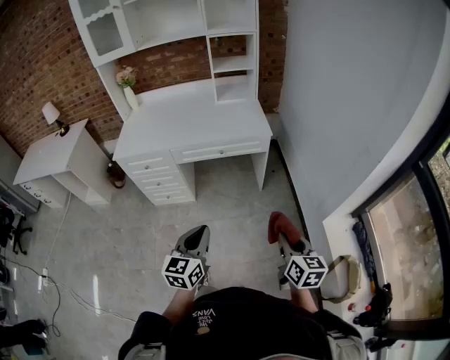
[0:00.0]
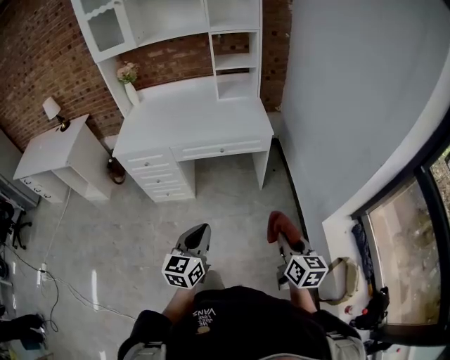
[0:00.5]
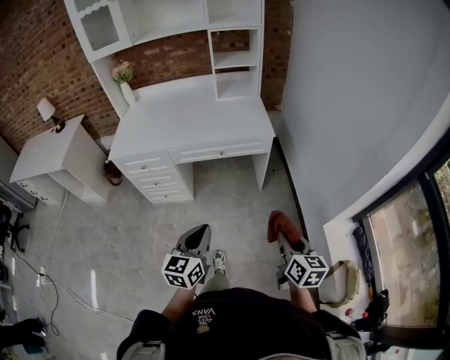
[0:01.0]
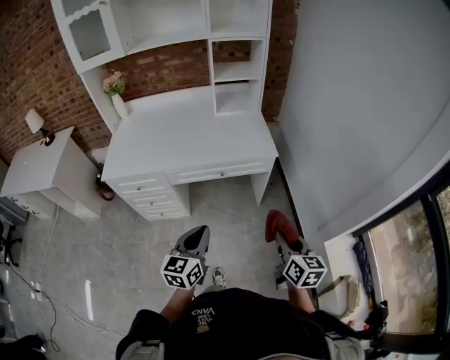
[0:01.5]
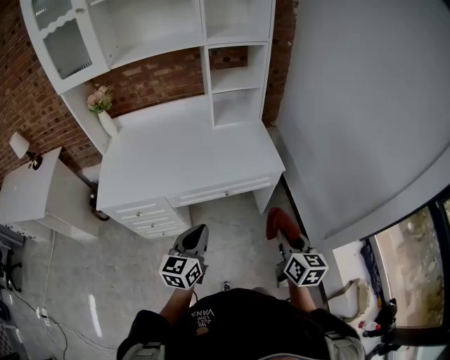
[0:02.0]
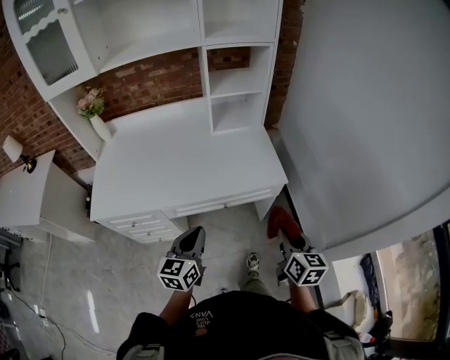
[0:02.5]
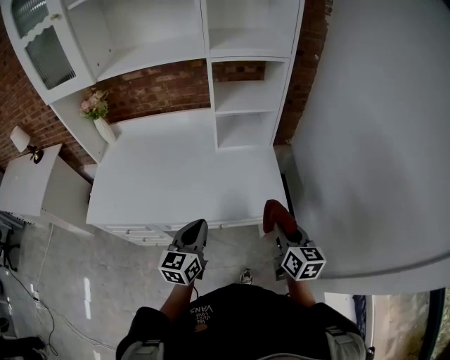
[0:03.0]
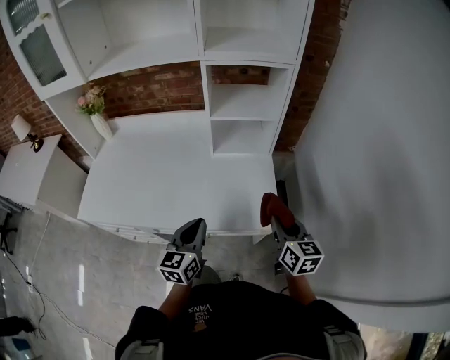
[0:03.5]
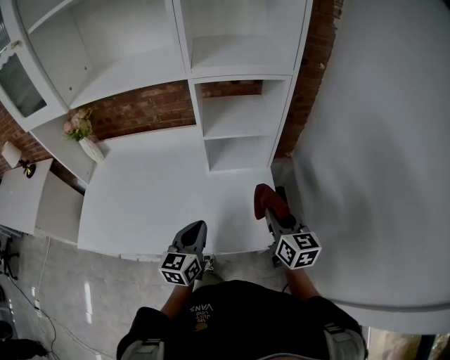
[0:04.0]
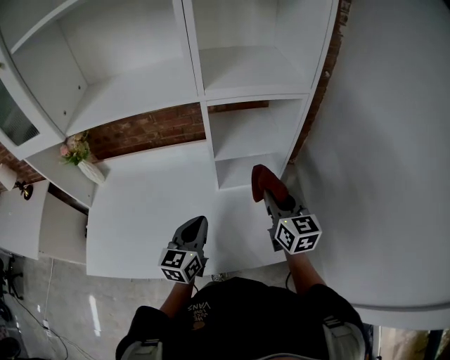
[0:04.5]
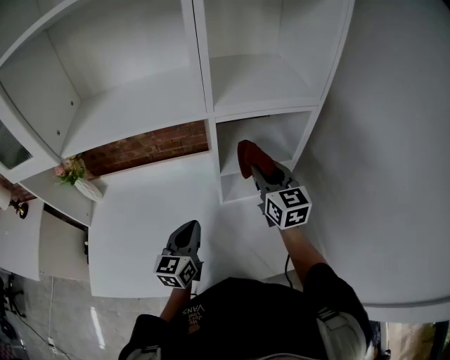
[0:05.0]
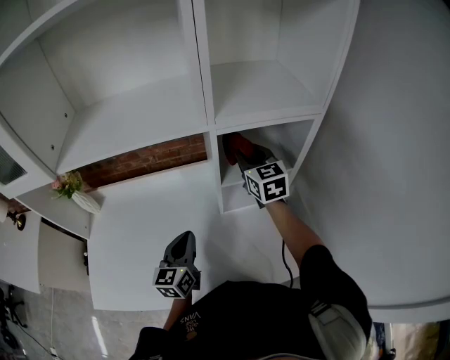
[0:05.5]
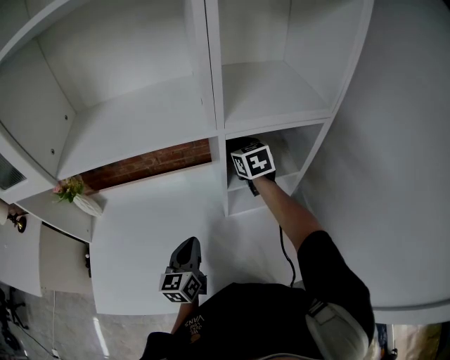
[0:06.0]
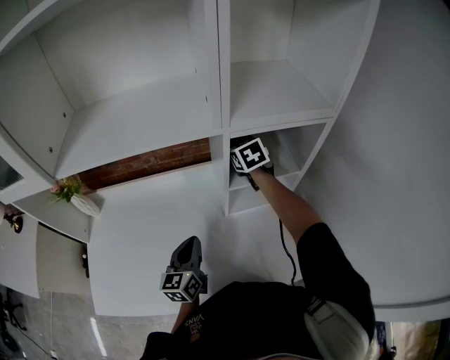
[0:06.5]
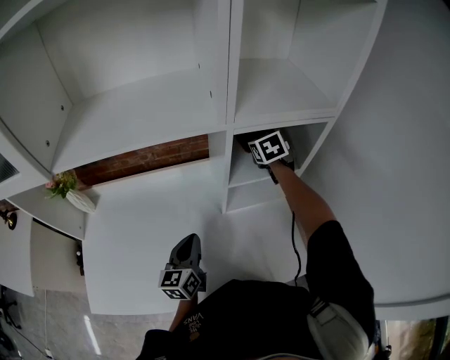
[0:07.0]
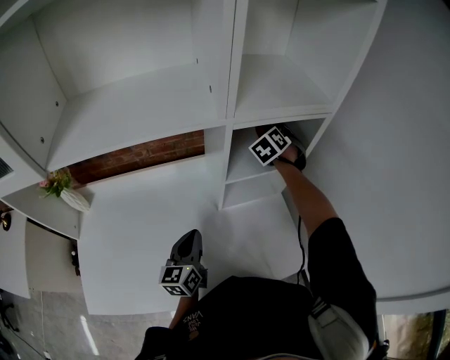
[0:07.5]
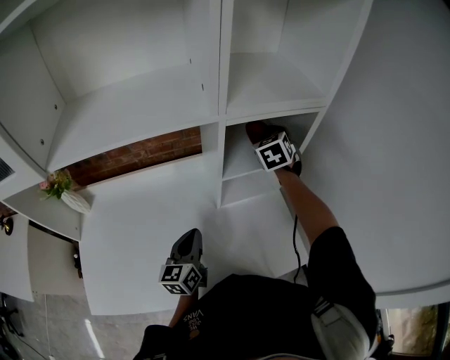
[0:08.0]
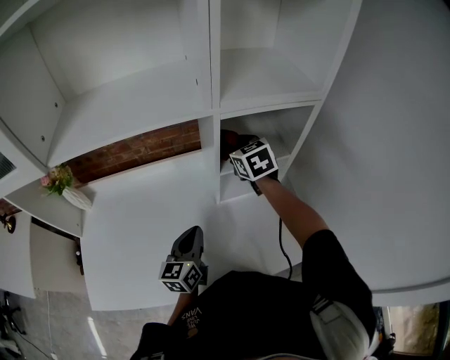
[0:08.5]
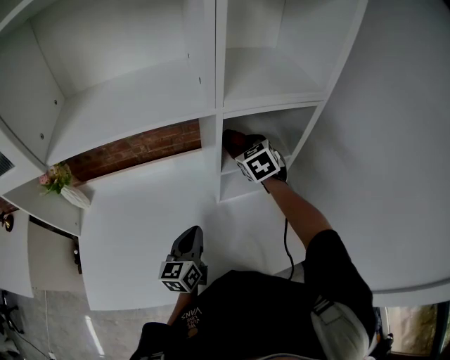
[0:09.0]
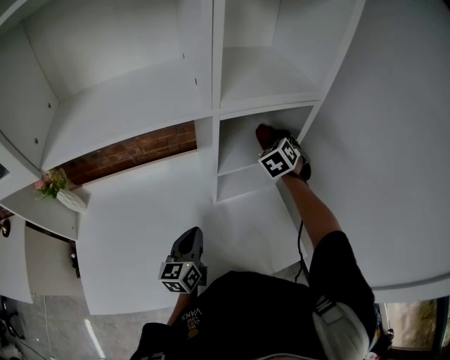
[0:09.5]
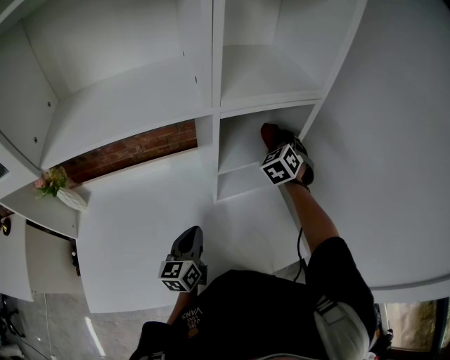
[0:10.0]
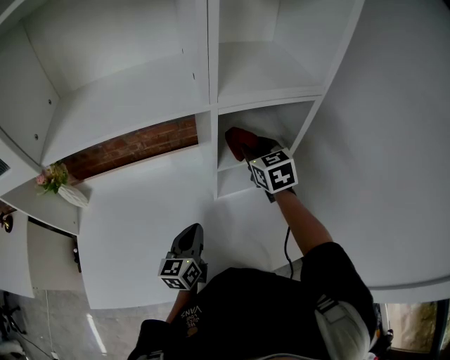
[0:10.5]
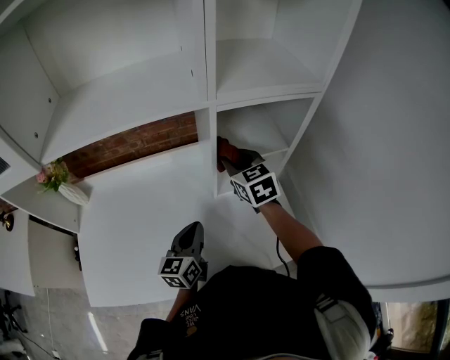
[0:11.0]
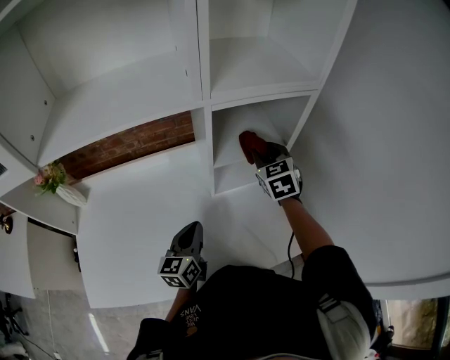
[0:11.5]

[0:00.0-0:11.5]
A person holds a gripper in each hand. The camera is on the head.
0:00.0 to 0:02.0: The left gripper heads forward, covering roughly 30 cm, while the right gripper goes approximately 30 cm forward and to the left.
0:02.0 to 0:04.0: The grippers both shift forward by about 40 cm.
0:04.0 to 0:06.0: The right gripper heads forward and to the left, covering approximately 40 cm, and swivels approximately 20 degrees. Meanwhile the left gripper travels forward and to the left by roughly 20 cm.
0:06.0 to 0:07.5: The right gripper heads to the right, covering approximately 15 cm, and turns by about 50 degrees.
0:07.5 to 0:09.5: The right gripper shifts roughly 5 cm backward, and goes to the left and returns, roughly 10 cm each way.
0:09.5 to 0:11.5: The right gripper is displaced backward by about 5 cm, moves some 15 cm to the left and comes back, and rotates some 20 degrees.

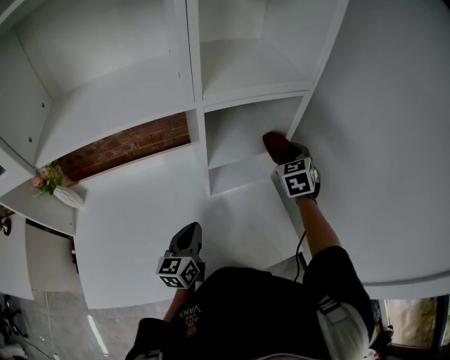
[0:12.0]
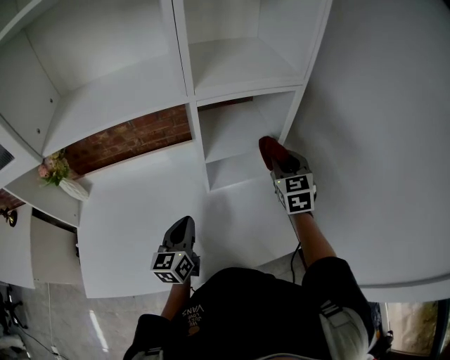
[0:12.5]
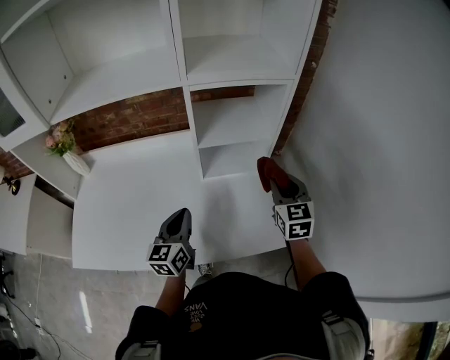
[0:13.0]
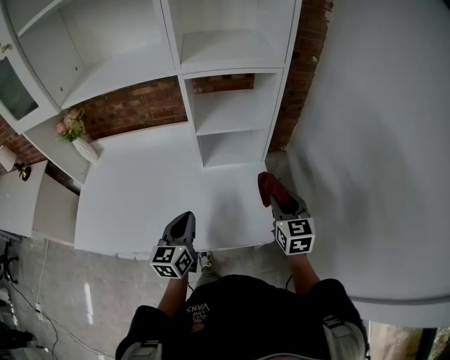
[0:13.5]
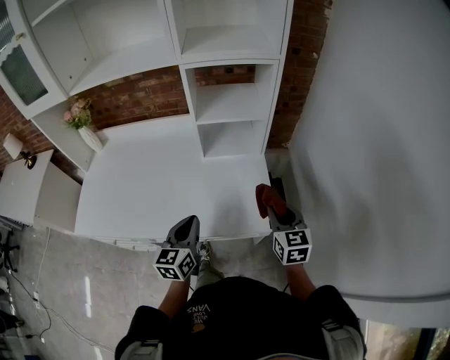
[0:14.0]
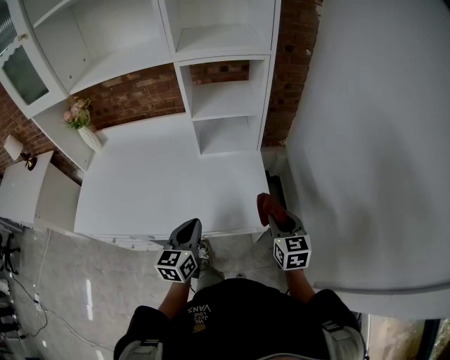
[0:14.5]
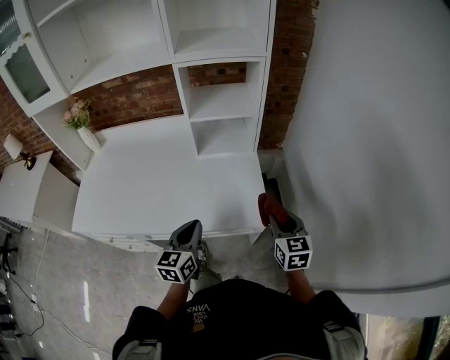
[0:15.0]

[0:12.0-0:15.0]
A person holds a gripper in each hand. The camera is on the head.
0:12.0 to 0:13.5: The right gripper moves backward, some 25 cm, and swivels about 30 degrees. Meanwhile the left gripper moves backward and to the right, approximately 15 cm.
0:13.5 to 0:15.0: The right gripper moves backward, about 15 cm. The left gripper is displaced backward and to the right by roughly 10 cm.

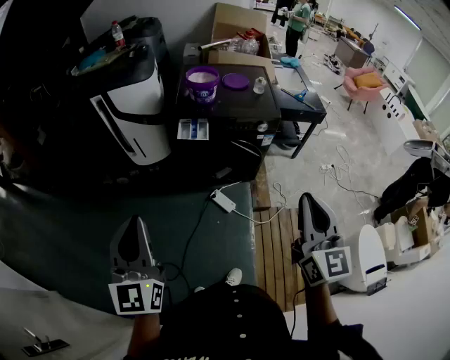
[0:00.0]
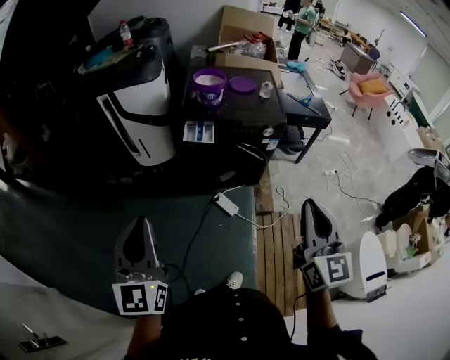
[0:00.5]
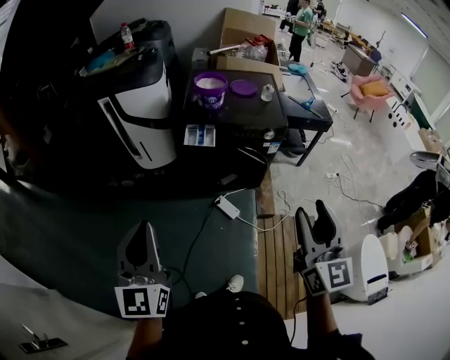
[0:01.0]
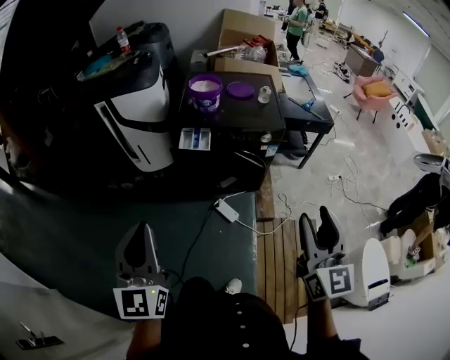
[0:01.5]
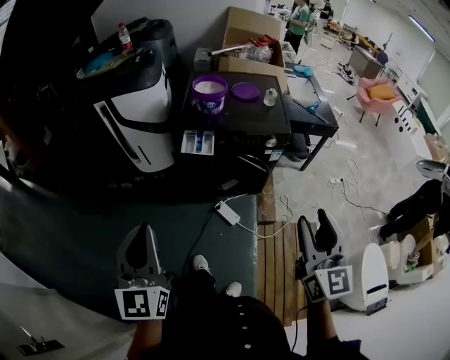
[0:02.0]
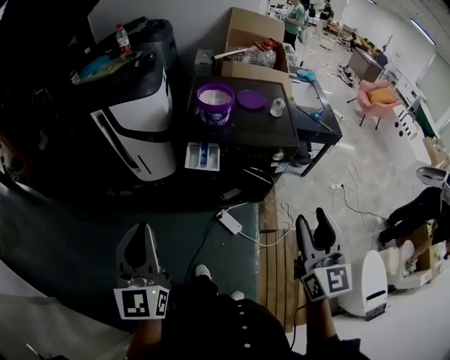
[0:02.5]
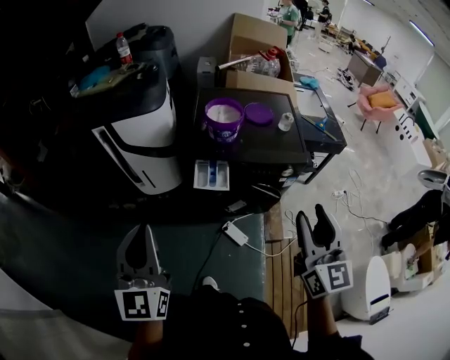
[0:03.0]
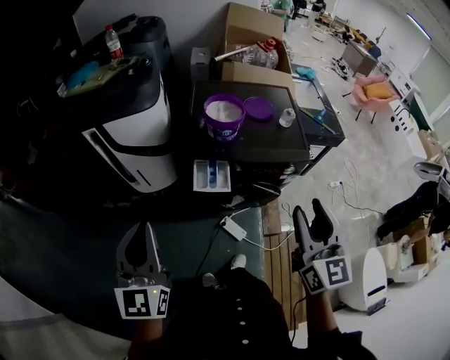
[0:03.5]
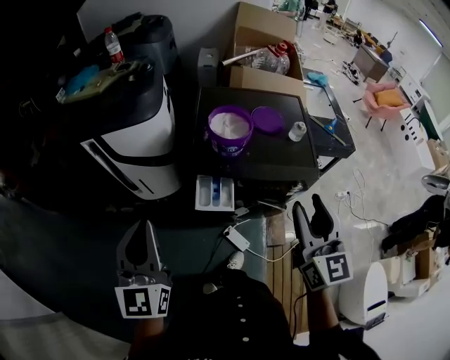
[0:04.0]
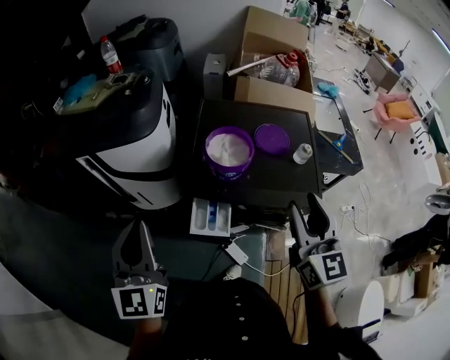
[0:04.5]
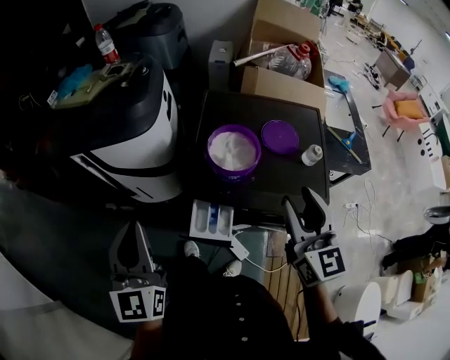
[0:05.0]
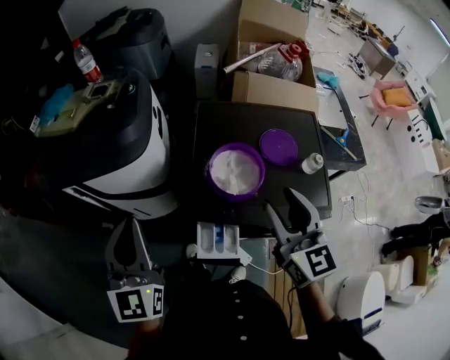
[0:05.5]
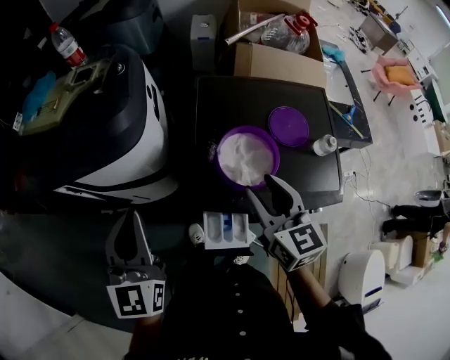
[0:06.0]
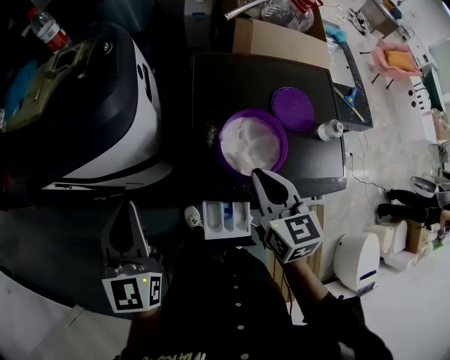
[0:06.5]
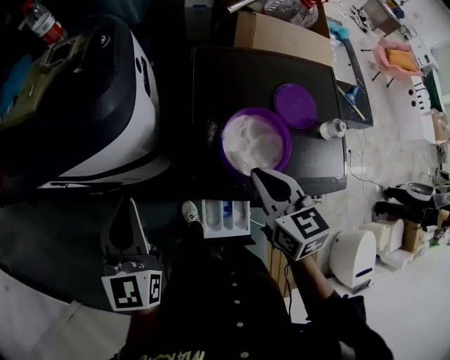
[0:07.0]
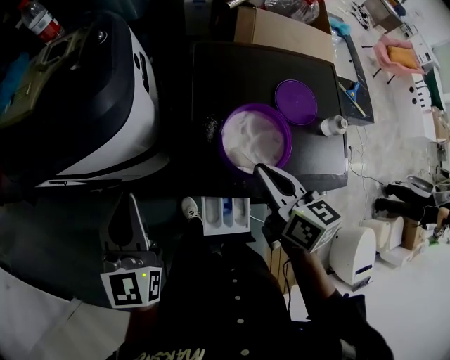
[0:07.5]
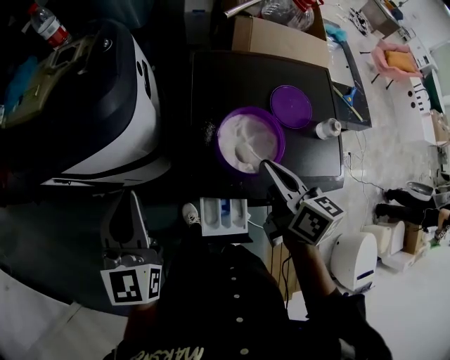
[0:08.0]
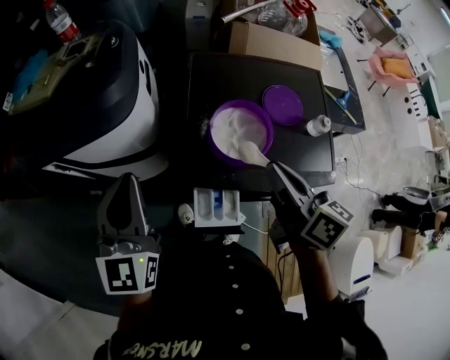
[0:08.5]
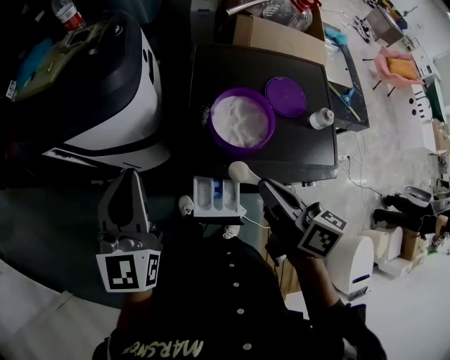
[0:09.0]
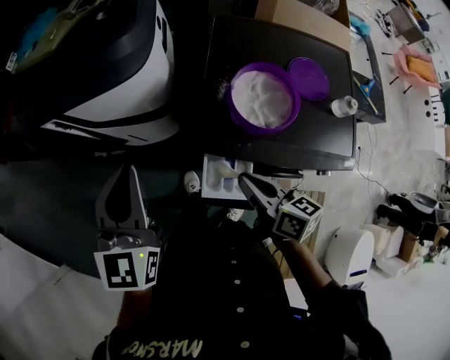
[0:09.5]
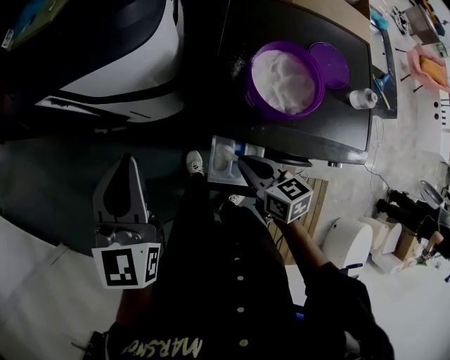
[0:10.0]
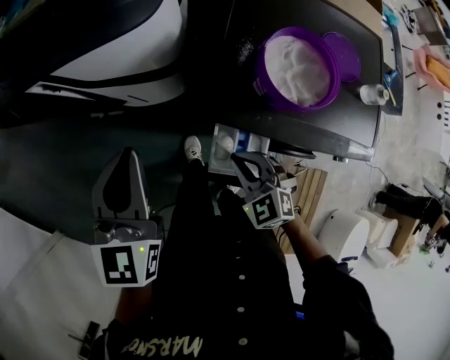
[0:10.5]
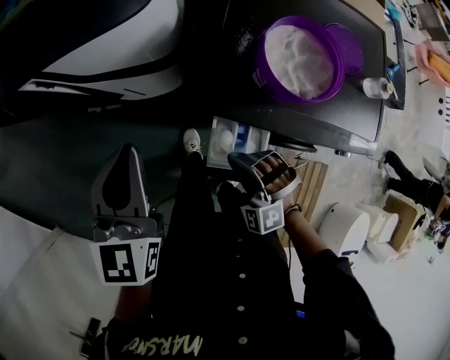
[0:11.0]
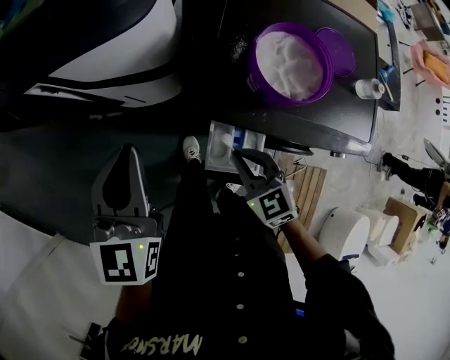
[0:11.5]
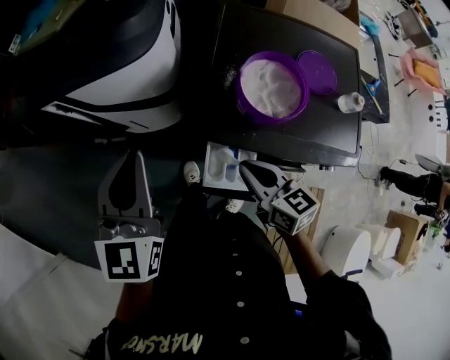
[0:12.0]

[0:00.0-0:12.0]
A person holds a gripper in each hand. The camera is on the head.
0:00.0 to 0:02.0: The left gripper travels forward by roughly 5 cm; the right gripper changes place by roughly 5 cm, and opens its fingers.
0:02.0 to 0:04.0: The grippers both shift forward by roughly 30 cm.
0:04.0 to 0:06.0: The right gripper moves forward and downward, roughly 30 cm, and changes its angle by approximately 20 degrees. Meanwhile the left gripper shifts roughly 25 cm forward.
0:06.0 to 0:08.0: The right gripper turns by approximately 30 degrees, and closes its fingers.
0:08.0 to 0:10.0: The right gripper travels downward, to the left and backward by some 20 cm, and rotates about 30 degrees, while the left gripper heads backward, covering about 10 cm.
0:10.0 to 0:12.0: The right gripper moves upward, roughly 5 cm.
